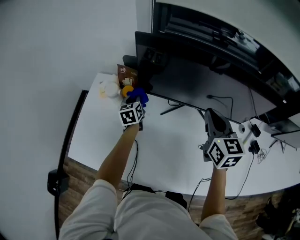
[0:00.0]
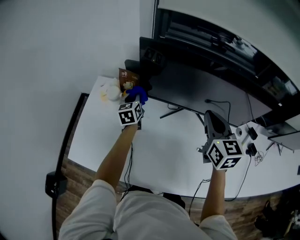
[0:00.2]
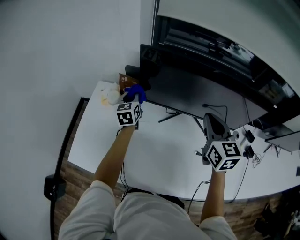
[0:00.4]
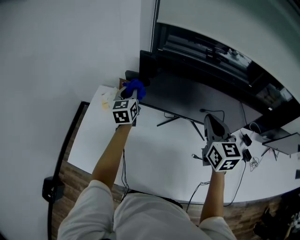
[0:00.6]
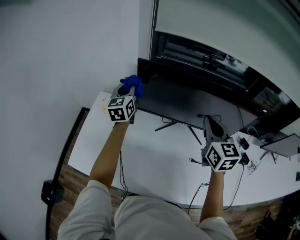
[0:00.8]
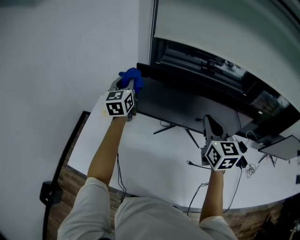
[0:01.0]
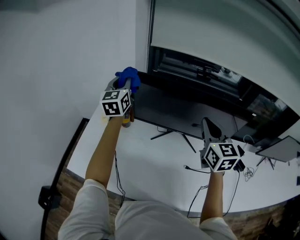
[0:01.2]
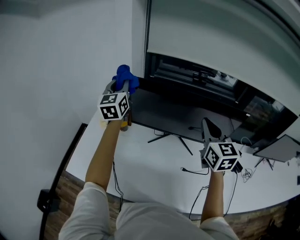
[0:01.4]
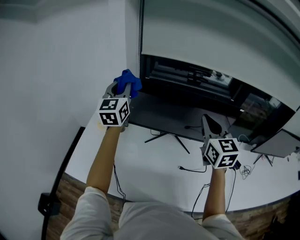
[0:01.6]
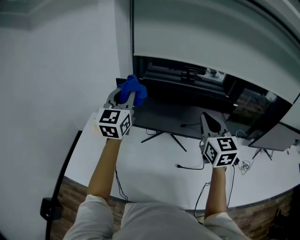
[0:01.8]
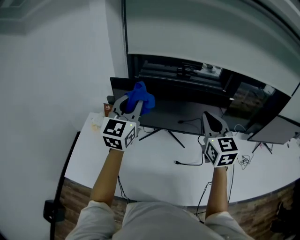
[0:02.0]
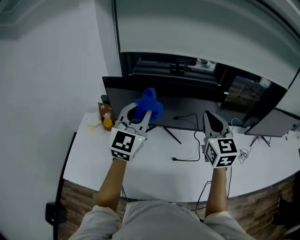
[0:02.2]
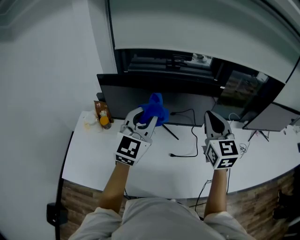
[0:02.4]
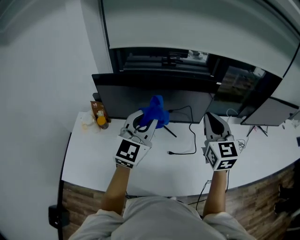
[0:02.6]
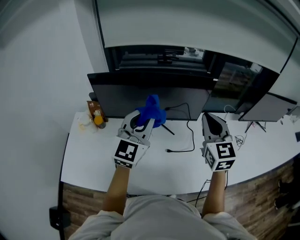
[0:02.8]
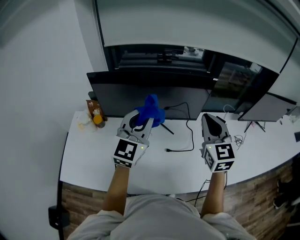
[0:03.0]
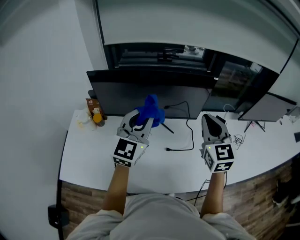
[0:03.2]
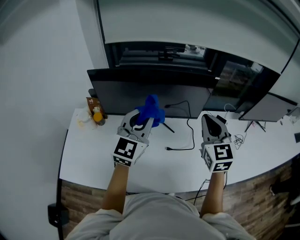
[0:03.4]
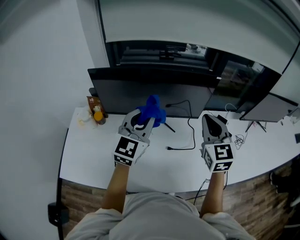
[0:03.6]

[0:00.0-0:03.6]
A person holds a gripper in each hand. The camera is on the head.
0:00.0 to 0:01.8: The left gripper heads upward, covering roughly 40 cm, and points its fingers some 40 degrees further upward. Meanwhile the right gripper heads upward, to the right and backward, covering about 20 cm.
0:01.8 to 0:03.6: The right gripper heads to the right and downward, covering about 10 cm. The left gripper travels to the right and downward by about 20 cm, and swivels roughly 20 degrees.

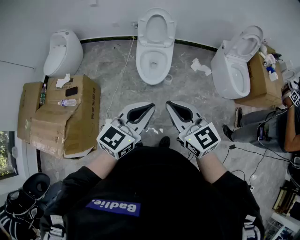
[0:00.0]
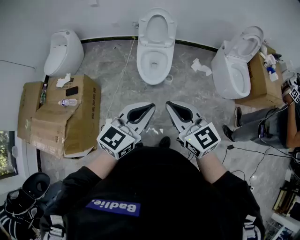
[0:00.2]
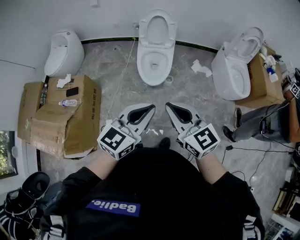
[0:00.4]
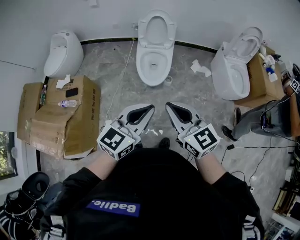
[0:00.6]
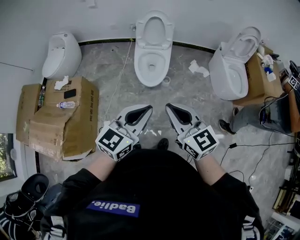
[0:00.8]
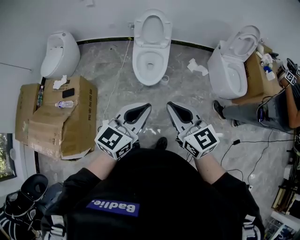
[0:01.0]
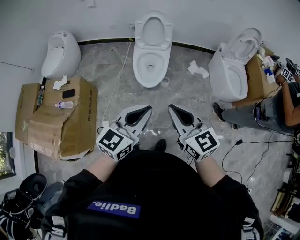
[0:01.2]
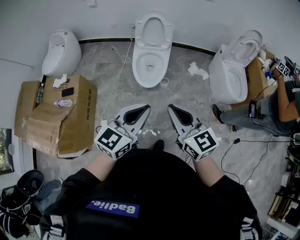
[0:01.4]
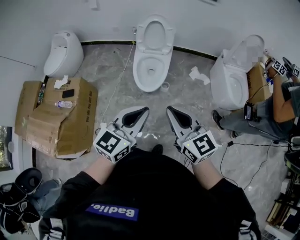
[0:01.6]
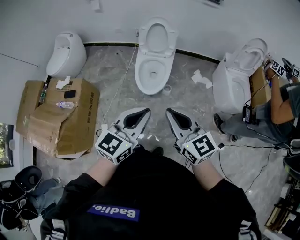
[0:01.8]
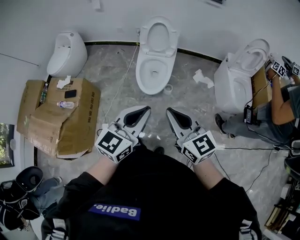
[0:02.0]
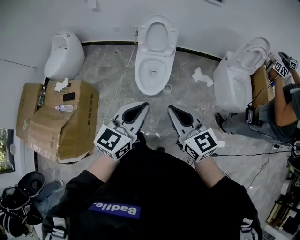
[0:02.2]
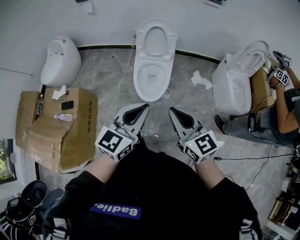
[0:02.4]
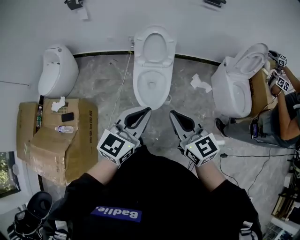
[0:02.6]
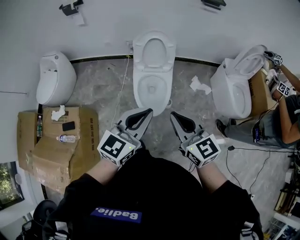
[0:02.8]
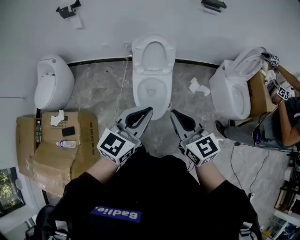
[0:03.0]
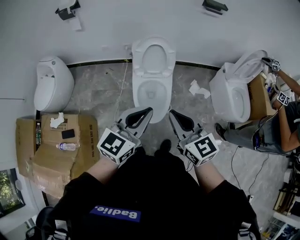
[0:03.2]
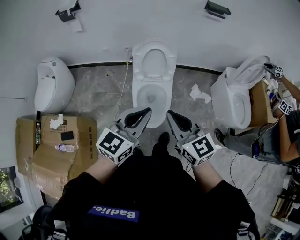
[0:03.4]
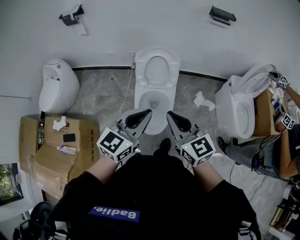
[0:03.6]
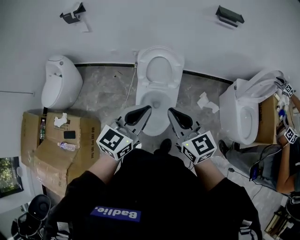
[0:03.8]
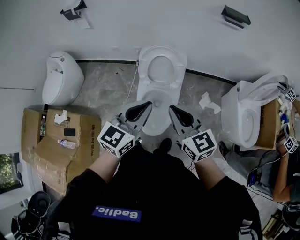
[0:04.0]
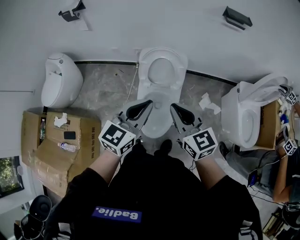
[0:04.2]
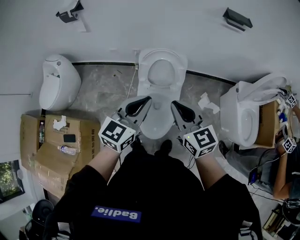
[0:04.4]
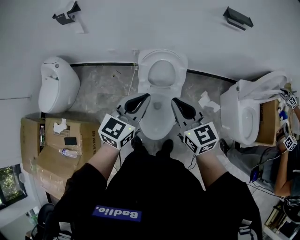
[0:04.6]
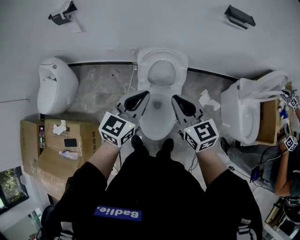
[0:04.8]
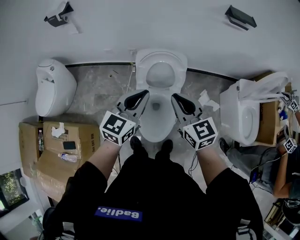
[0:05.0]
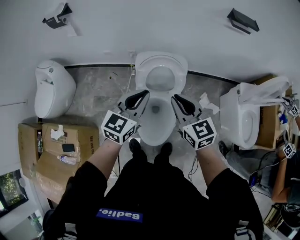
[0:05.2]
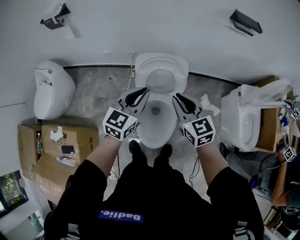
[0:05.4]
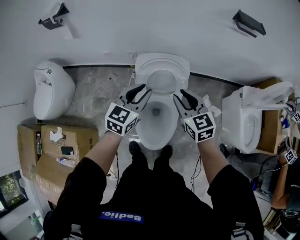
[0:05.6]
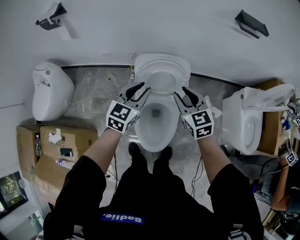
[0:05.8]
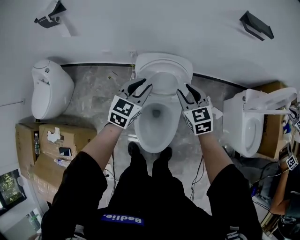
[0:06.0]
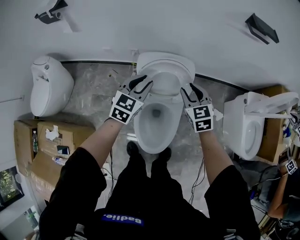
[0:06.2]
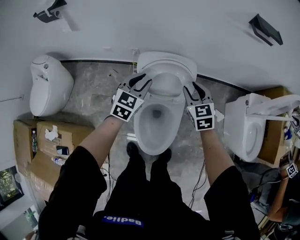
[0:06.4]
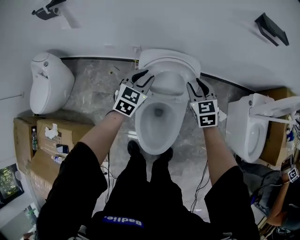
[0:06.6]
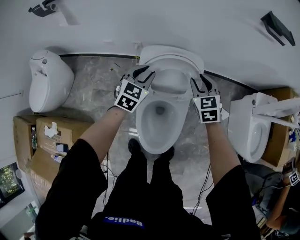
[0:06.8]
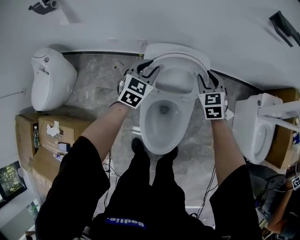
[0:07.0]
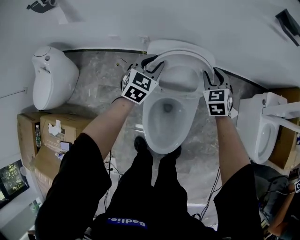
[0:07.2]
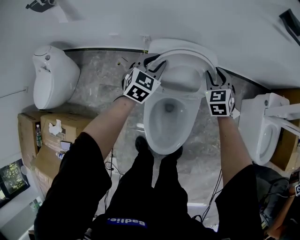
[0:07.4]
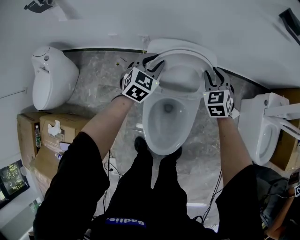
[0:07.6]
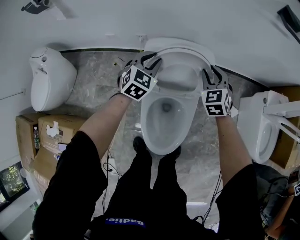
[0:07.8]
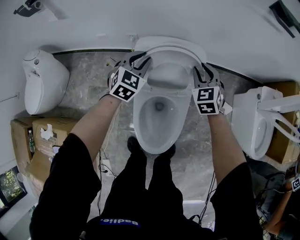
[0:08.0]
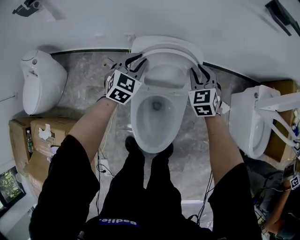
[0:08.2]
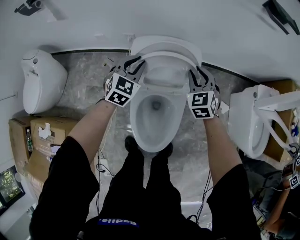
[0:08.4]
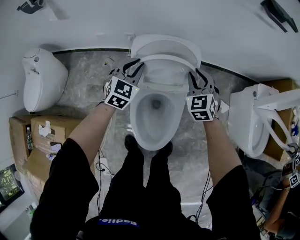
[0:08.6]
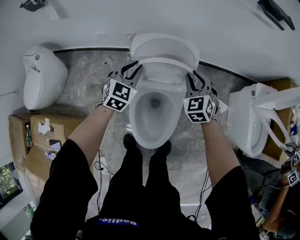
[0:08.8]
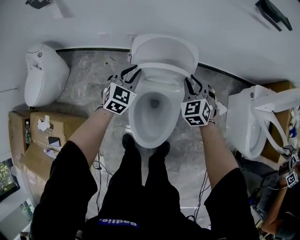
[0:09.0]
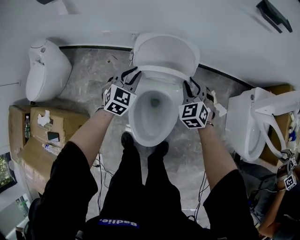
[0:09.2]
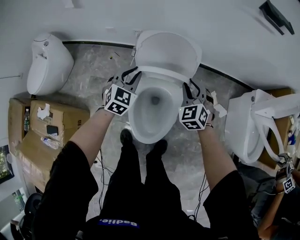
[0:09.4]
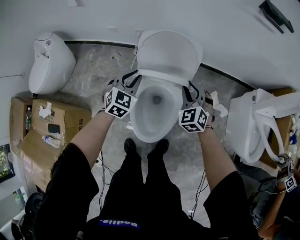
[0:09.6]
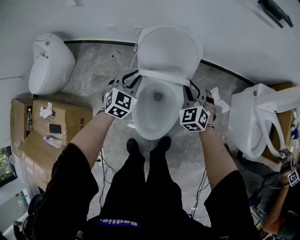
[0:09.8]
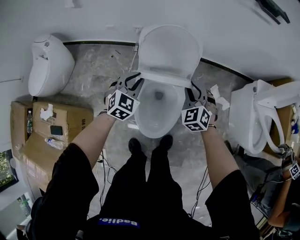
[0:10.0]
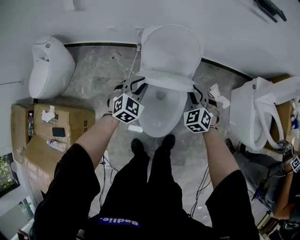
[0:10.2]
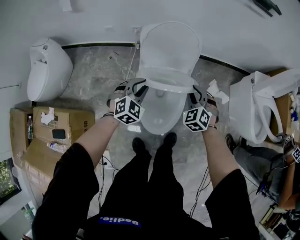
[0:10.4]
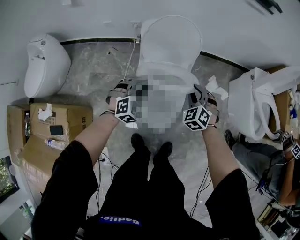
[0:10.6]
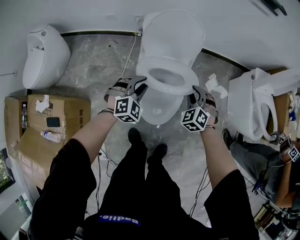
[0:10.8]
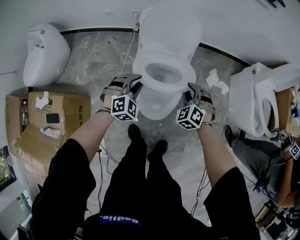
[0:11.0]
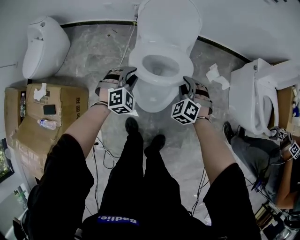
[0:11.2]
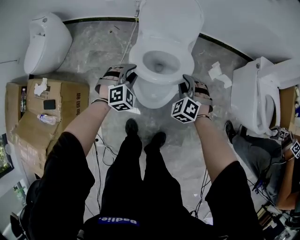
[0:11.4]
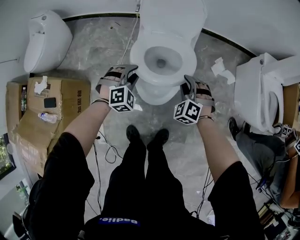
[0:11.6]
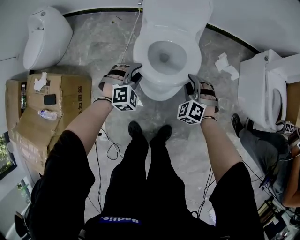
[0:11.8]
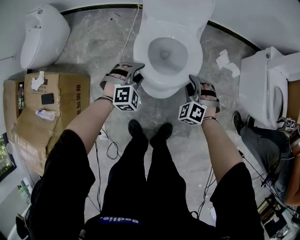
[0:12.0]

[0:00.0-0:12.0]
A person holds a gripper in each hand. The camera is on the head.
0:00.0 to 0:01.6: The right gripper heads to the right, covering about 5 cm. Meanwhile the left gripper ends up some 5 cm from where it was.
0:01.6 to 0:03.0: Both grippers travel together forward, some 25 cm.
0:03.0 to 0:04.4: The grippers both shift forward by roughly 25 cm.
0:04.4 to 0:06.0: The grippers both shift forward and downward by about 25 cm. The right gripper turns by some 20 degrees, and opens. Meanwhile the left gripper opens its fingers.
0:06.0 to 0:07.6: The grippers both shift downward and forward by roughly 20 cm. The right gripper rotates roughly 20 degrees.
0:07.6 to 0:09.0: The grippers both shift backward by some 10 cm.
0:09.0 to 0:10.4: The two grippers go approximately 15 cm backward.
0:10.4 to 0:12.0: Both grippers move backward and downward, roughly 20 cm. The left gripper turns by roughly 20 degrees; the right gripper changes its angle by roughly 20 degrees.

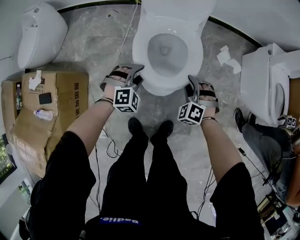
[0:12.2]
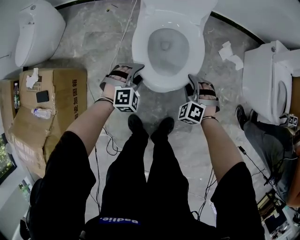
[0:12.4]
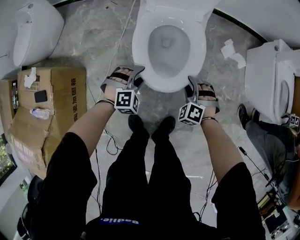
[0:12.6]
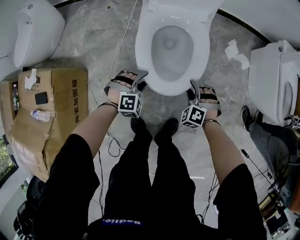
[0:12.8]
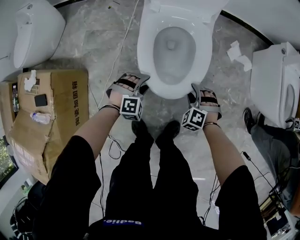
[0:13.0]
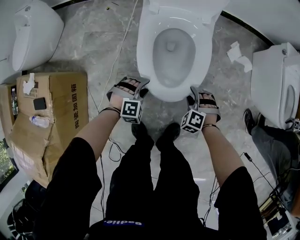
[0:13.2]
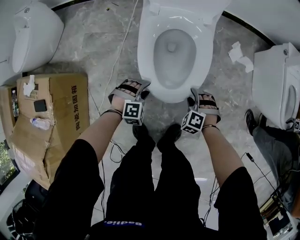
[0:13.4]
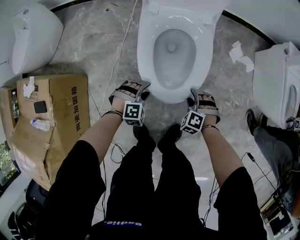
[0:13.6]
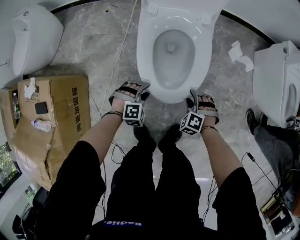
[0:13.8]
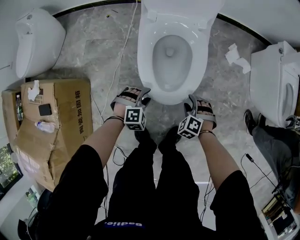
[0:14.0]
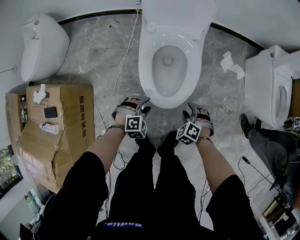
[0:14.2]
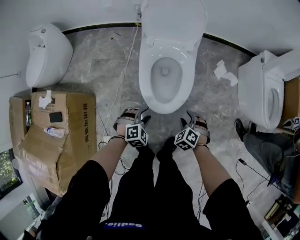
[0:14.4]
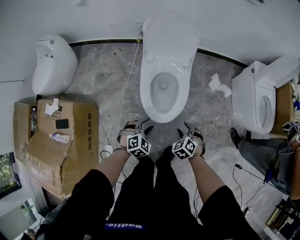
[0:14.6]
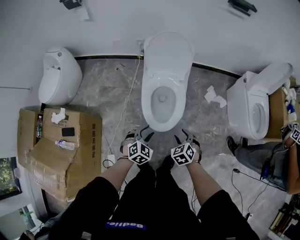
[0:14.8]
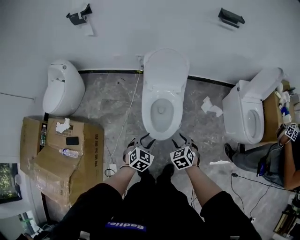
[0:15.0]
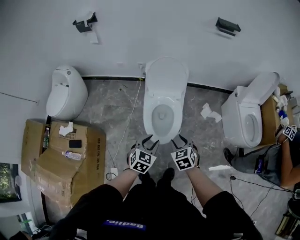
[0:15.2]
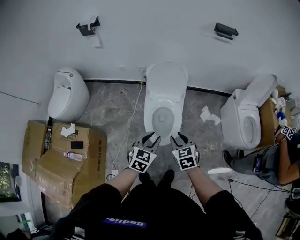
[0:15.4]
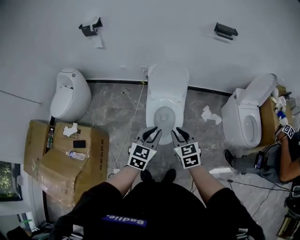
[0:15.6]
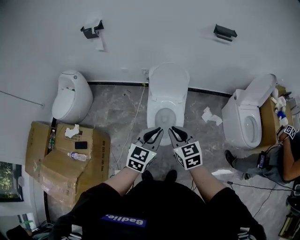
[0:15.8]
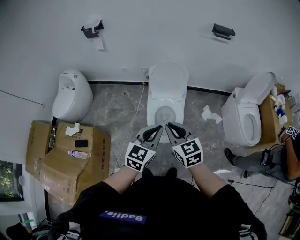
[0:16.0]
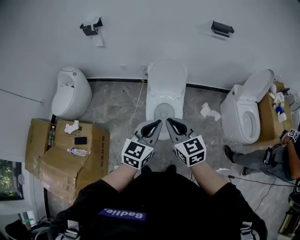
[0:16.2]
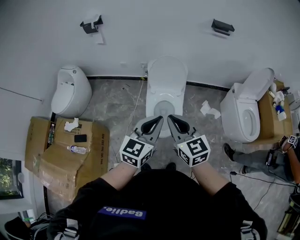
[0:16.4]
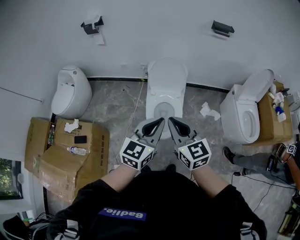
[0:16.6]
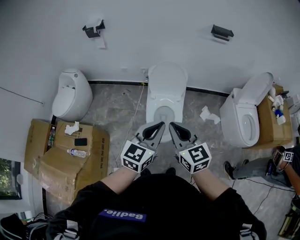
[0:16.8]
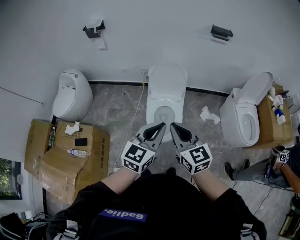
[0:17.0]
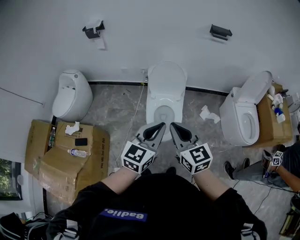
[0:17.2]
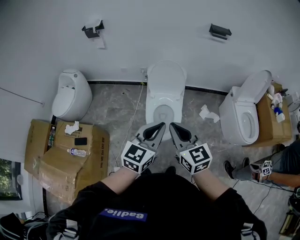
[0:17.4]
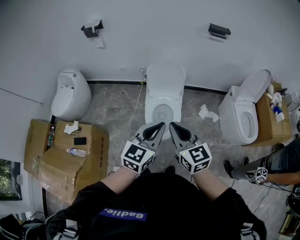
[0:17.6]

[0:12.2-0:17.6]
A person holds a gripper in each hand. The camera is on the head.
0:12.2 to 0:13.6: The grippers both shift downward by some 15 cm.
0:13.6 to 0:15.0: Both grippers move upward, about 35 cm. The left gripper rolls counterclockwise, seen from behind, by roughly 40 degrees. The right gripper twists some 50 degrees clockwise, seen from behind.
0:15.0 to 0:16.2: Both grippers move upward, approximately 30 cm. The left gripper points its fingers about 30 degrees further upward, and closes its fingers, while the right gripper angles its fingers upward, by approximately 30 degrees, and closes its fingers.
0:16.2 to 0:17.6: The right gripper moves roughly 5 cm.

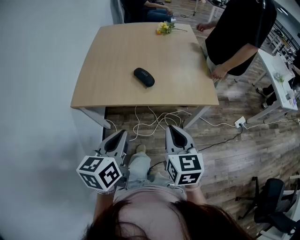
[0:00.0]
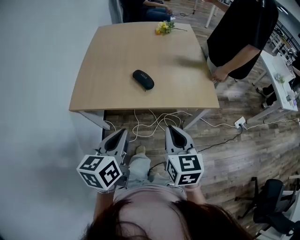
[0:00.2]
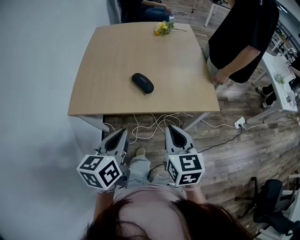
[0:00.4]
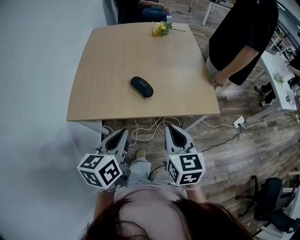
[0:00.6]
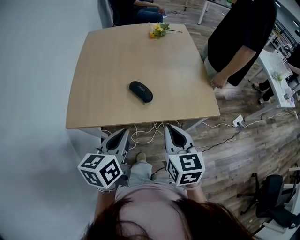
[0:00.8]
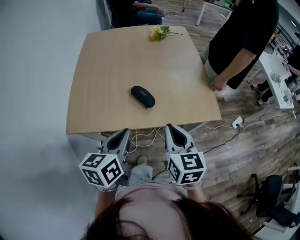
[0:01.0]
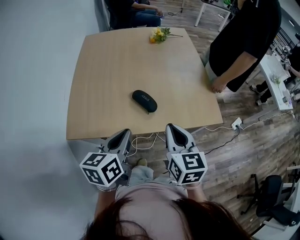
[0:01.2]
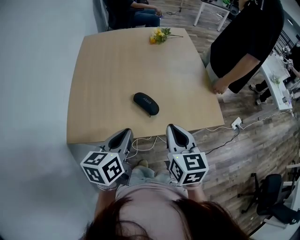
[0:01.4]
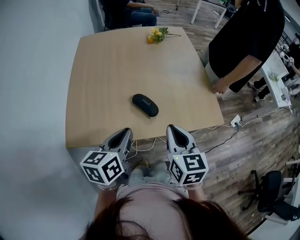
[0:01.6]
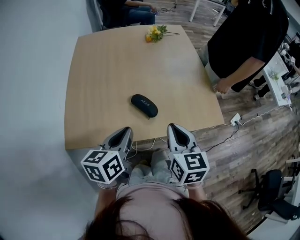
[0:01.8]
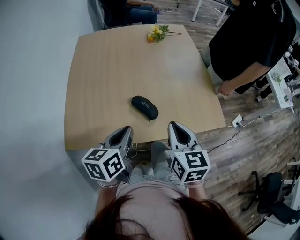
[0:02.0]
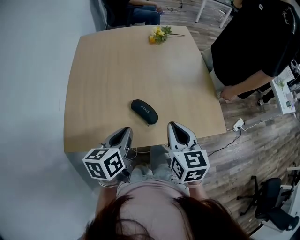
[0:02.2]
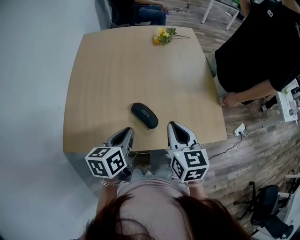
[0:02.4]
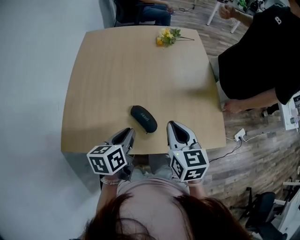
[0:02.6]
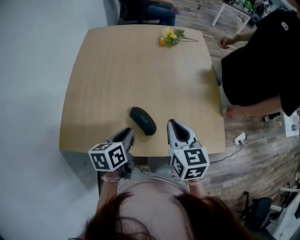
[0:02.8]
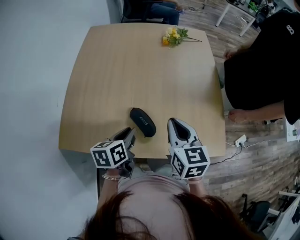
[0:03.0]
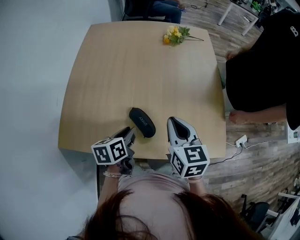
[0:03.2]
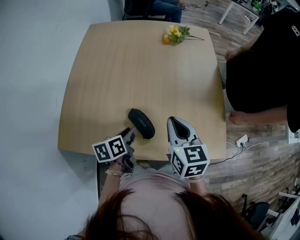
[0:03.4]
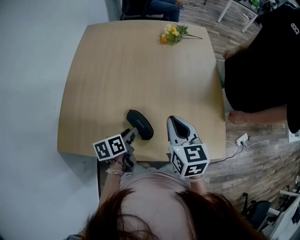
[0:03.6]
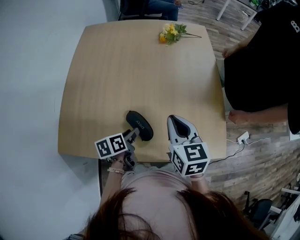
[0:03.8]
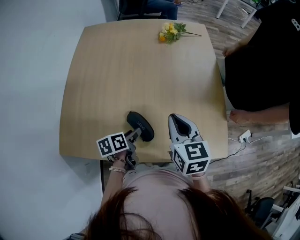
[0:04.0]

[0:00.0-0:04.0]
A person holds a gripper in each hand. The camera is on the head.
0:00.0 to 0:01.4: The right gripper heads forward and to the left, covering about 20 cm. Meanwhile the left gripper goes about 20 cm forward.
0:01.4 to 0:02.6: The right gripper is displaced forward by approximately 15 cm, while the left gripper goes approximately 15 cm forward and downward.
0:02.6 to 0:04.0: The left gripper travels downward and forward by some 15 cm, changes its angle by about 30 degrees, and opens. Meanwhile the right gripper shifts some 10 cm forward.
